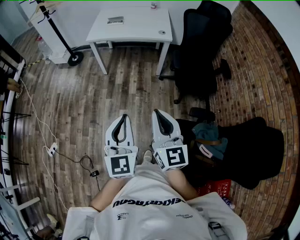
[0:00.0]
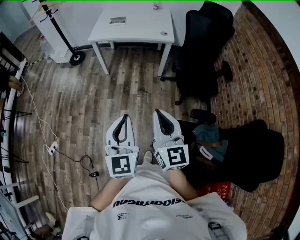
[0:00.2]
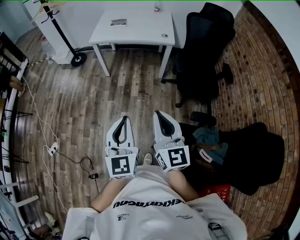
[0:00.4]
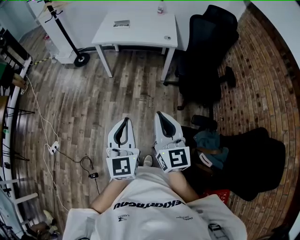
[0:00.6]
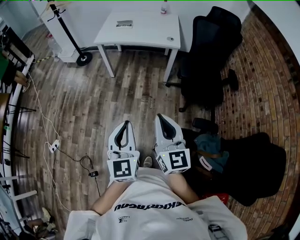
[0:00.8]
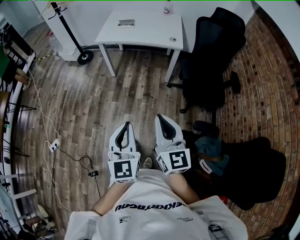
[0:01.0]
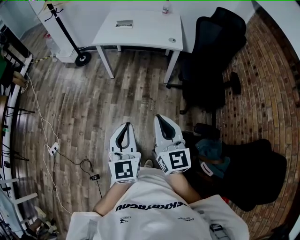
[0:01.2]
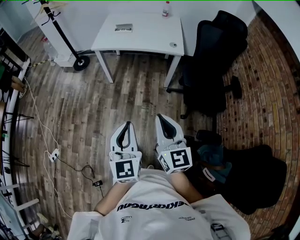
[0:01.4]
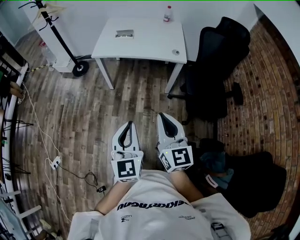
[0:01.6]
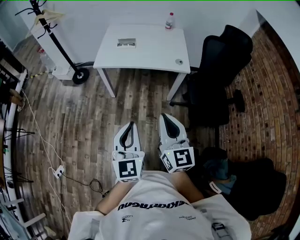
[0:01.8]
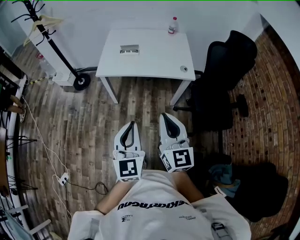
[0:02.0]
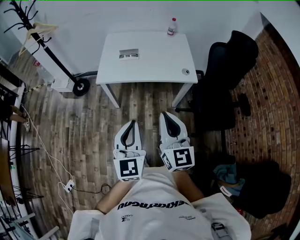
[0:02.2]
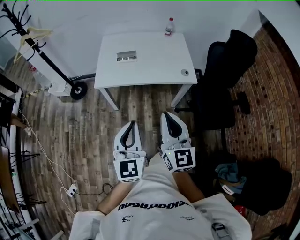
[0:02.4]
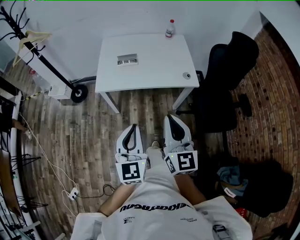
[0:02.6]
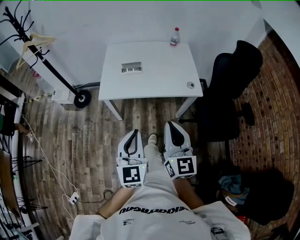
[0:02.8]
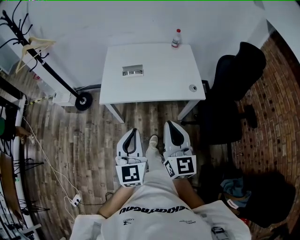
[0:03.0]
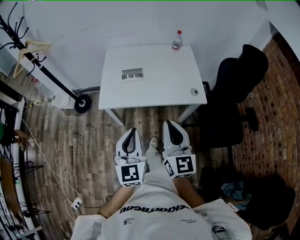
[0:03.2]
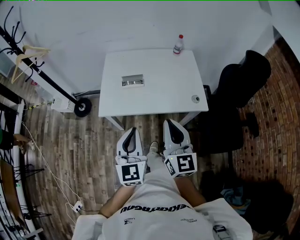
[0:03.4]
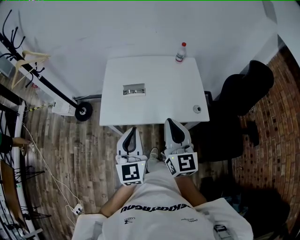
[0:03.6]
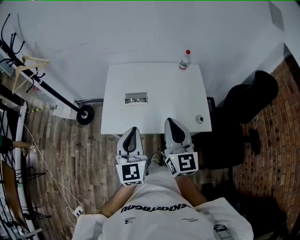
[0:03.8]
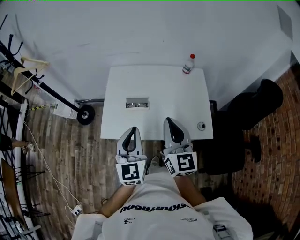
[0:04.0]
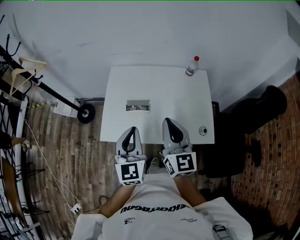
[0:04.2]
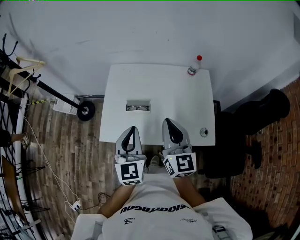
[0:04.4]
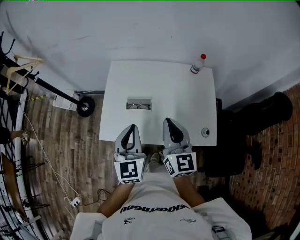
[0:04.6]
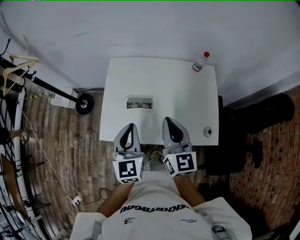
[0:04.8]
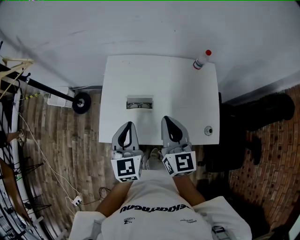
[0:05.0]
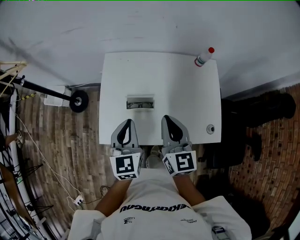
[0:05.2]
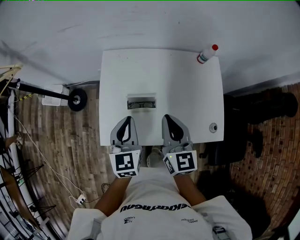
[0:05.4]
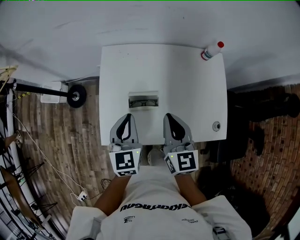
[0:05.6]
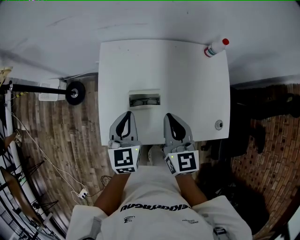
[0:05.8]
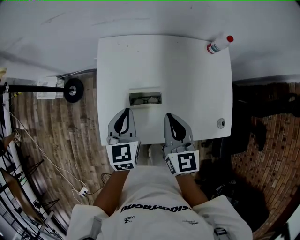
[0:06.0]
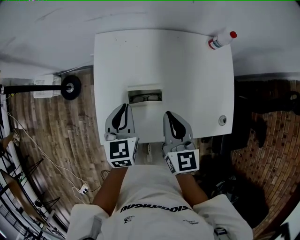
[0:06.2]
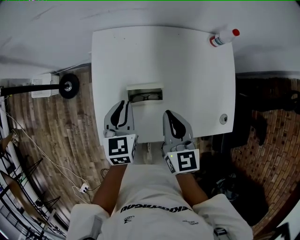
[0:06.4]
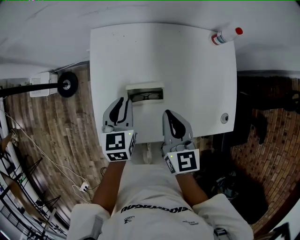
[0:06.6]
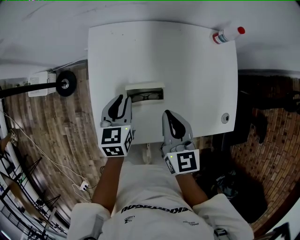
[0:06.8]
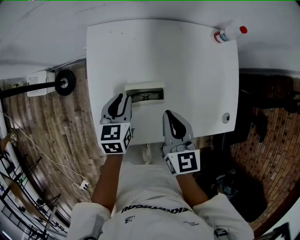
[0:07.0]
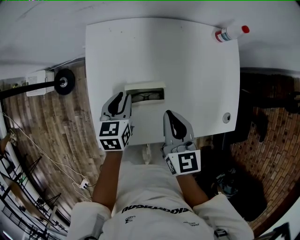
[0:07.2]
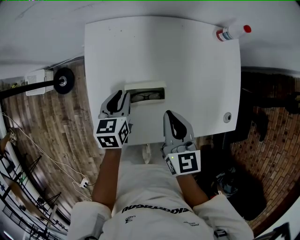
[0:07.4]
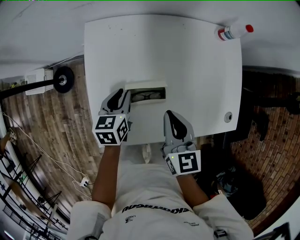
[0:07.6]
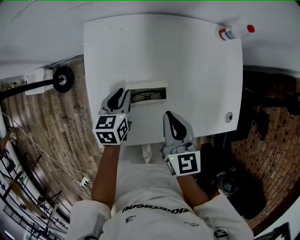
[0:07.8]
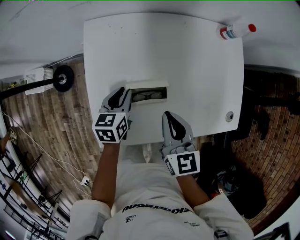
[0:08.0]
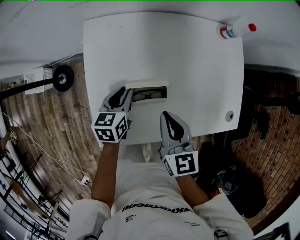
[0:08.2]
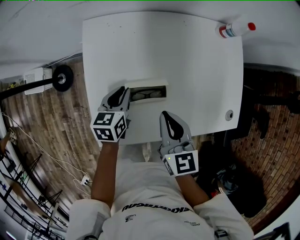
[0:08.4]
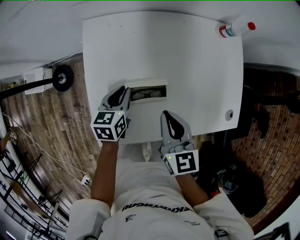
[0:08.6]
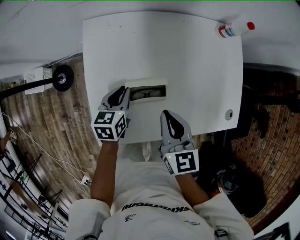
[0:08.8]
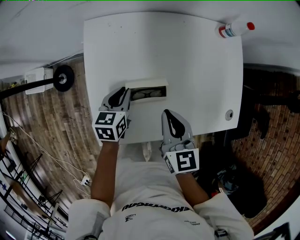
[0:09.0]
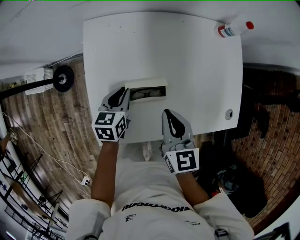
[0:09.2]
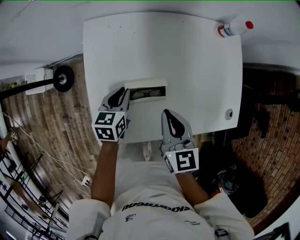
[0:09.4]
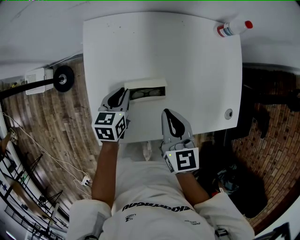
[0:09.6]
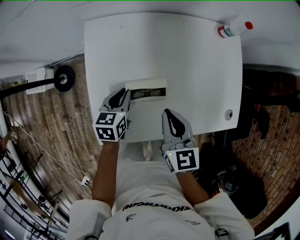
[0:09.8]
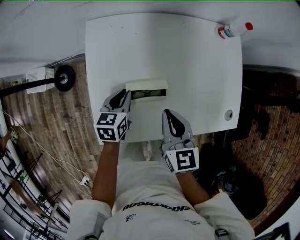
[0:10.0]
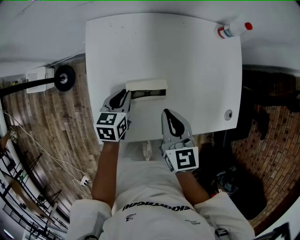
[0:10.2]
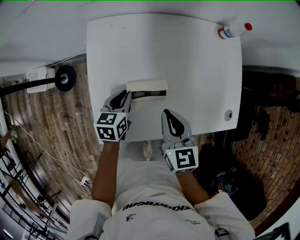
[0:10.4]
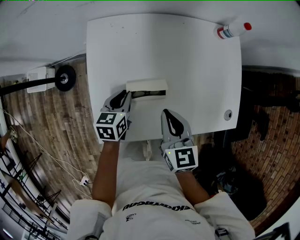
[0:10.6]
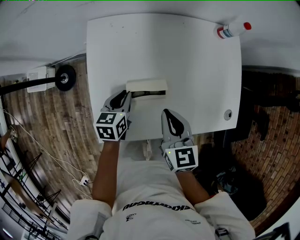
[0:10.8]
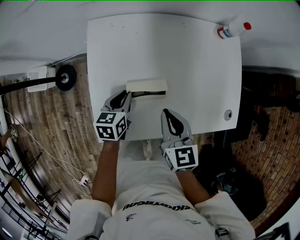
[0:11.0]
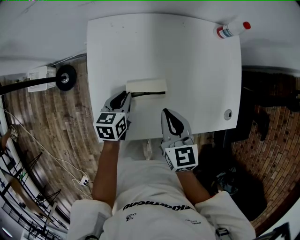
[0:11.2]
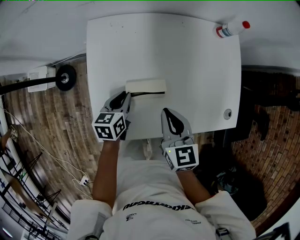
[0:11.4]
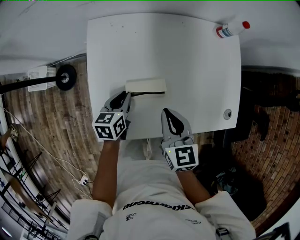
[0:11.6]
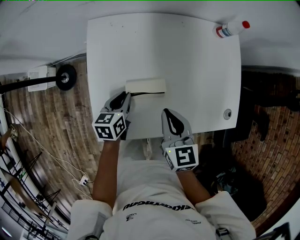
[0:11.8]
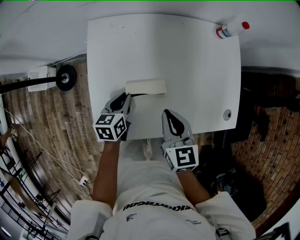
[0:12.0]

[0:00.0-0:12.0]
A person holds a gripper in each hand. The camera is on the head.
0:00.0 to 0:01.6: The two grippers go about 25 cm forward.
0:01.6 to 0:03.0: Both grippers move forward, approximately 35 cm.
0:03.0 to 0:04.4: The grippers both shift forward by approximately 40 cm.
0:04.4 to 0:06.0: The left gripper shifts approximately 25 cm forward, downward and to the left, and turns by some 20 degrees; the right gripper moves downward, forward and to the left, approximately 20 cm.
0:06.0 to 0:07.6: The right gripper moves downward, some 10 cm. The left gripper travels downward and forward by about 15 cm, rotates approximately 20 degrees, and opens.
0:07.6 to 0:12.0: The grippers make only small movements.

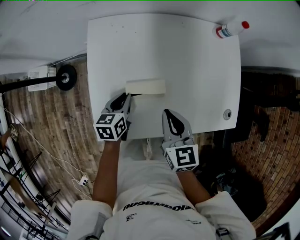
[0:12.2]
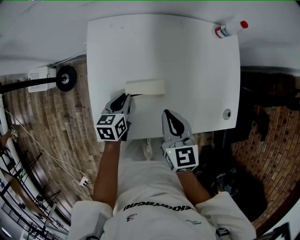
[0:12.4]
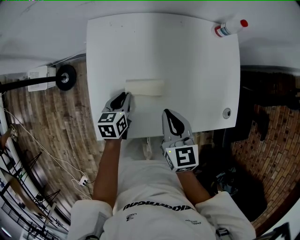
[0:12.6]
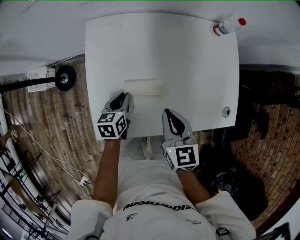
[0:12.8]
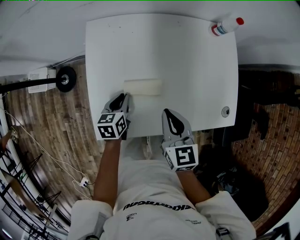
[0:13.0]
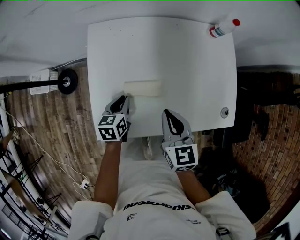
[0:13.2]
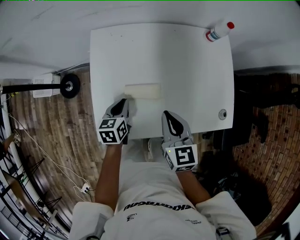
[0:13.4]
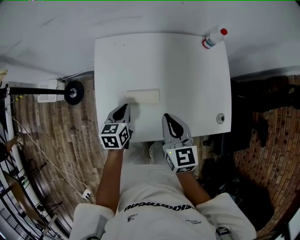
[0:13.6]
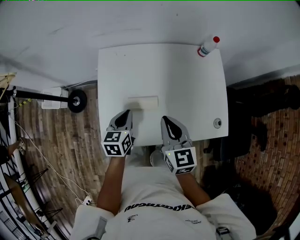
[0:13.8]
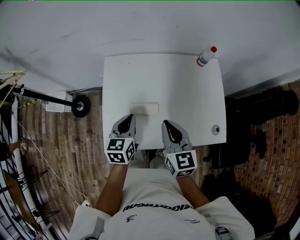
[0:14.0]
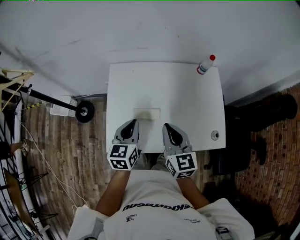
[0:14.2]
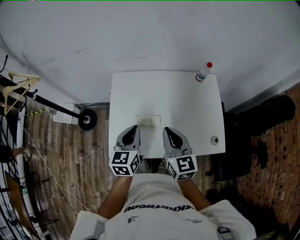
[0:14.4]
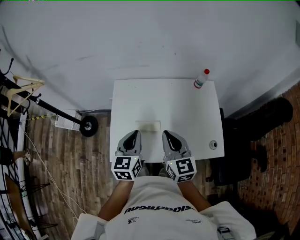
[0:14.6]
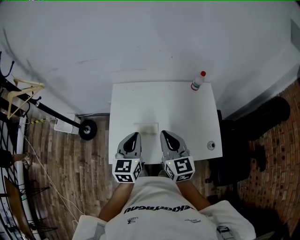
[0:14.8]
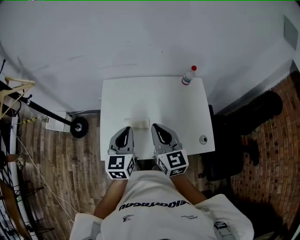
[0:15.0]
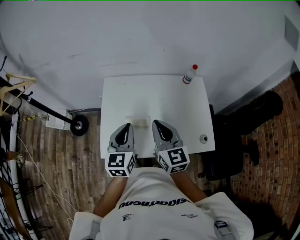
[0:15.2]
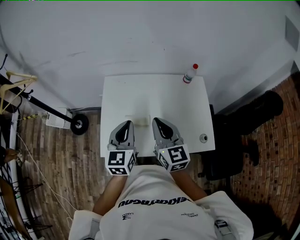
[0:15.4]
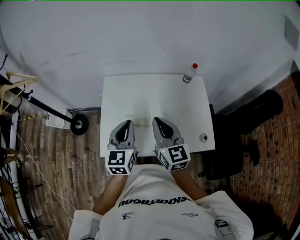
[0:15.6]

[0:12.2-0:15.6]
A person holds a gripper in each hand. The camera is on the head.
0:12.2 to 0:13.8: The two grippers go approximately 10 cm upward.
0:13.8 to 0:15.6: The right gripper goes approximately 15 cm upward; the left gripper moves upward, roughly 20 cm, and changes its angle by about 30 degrees.

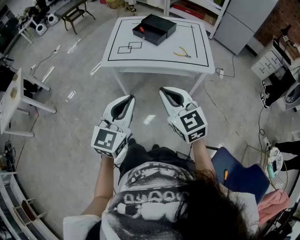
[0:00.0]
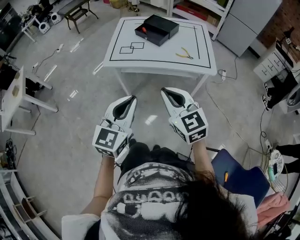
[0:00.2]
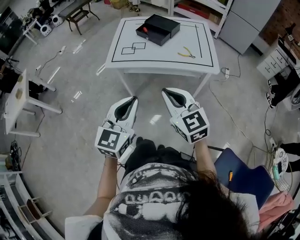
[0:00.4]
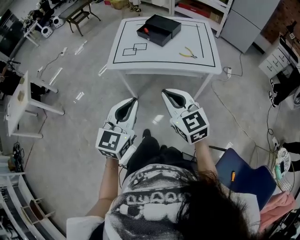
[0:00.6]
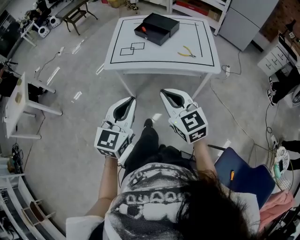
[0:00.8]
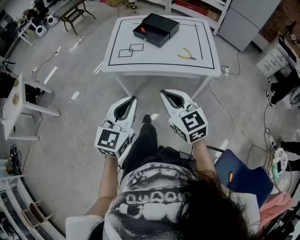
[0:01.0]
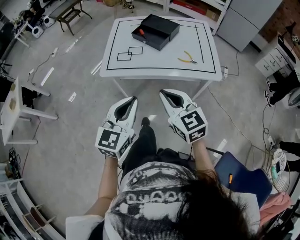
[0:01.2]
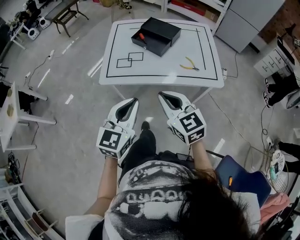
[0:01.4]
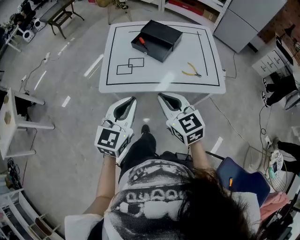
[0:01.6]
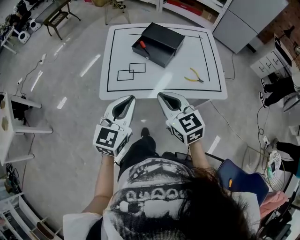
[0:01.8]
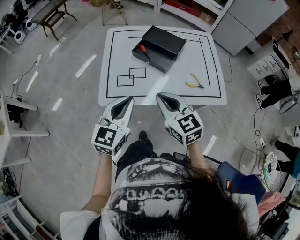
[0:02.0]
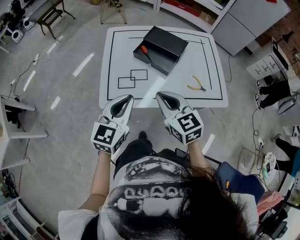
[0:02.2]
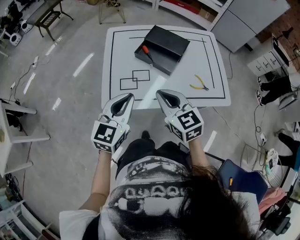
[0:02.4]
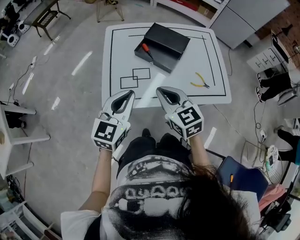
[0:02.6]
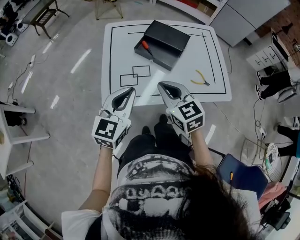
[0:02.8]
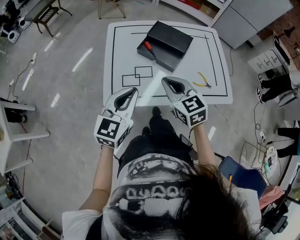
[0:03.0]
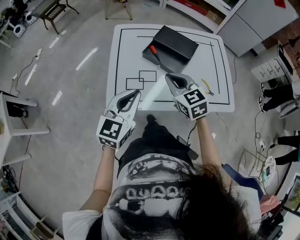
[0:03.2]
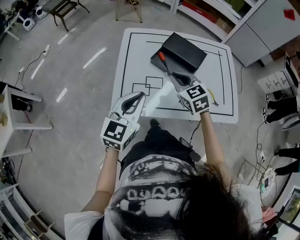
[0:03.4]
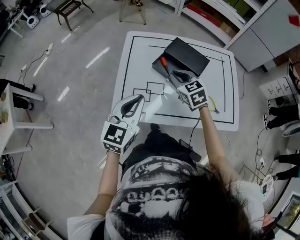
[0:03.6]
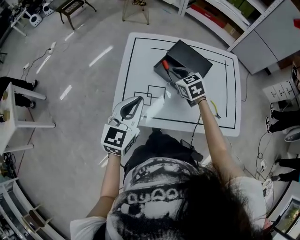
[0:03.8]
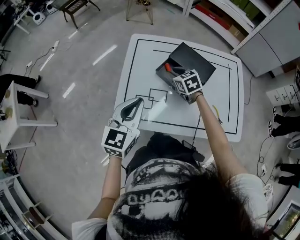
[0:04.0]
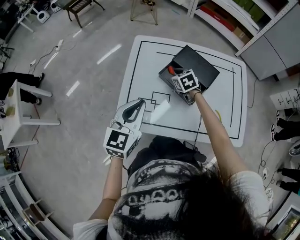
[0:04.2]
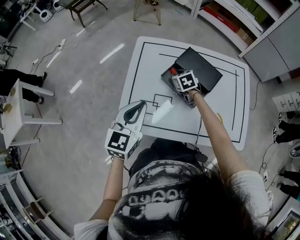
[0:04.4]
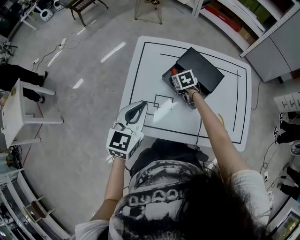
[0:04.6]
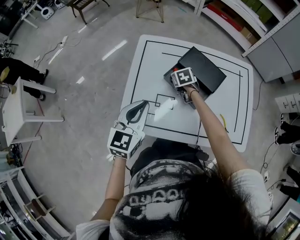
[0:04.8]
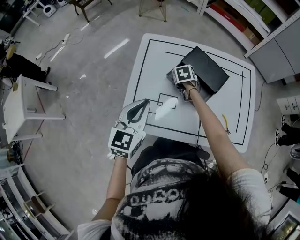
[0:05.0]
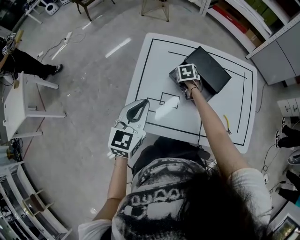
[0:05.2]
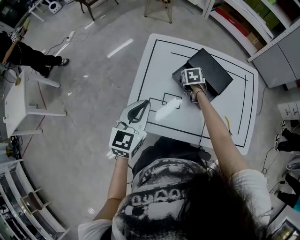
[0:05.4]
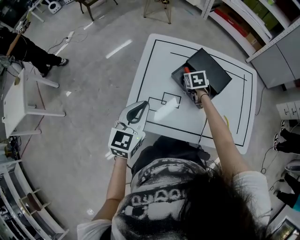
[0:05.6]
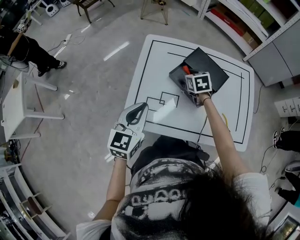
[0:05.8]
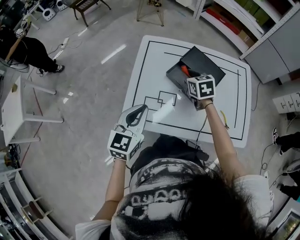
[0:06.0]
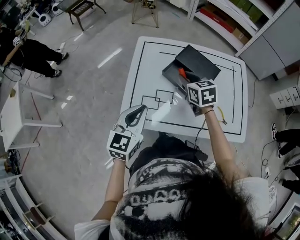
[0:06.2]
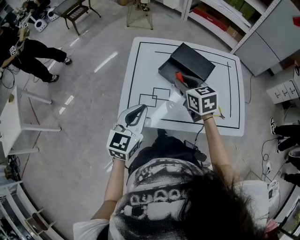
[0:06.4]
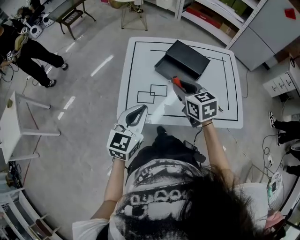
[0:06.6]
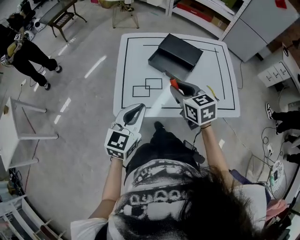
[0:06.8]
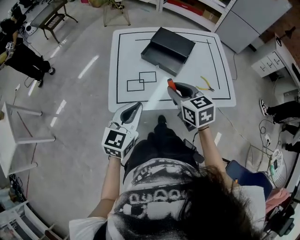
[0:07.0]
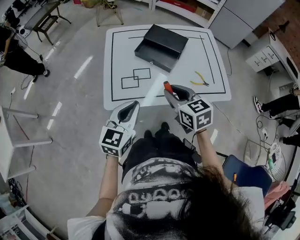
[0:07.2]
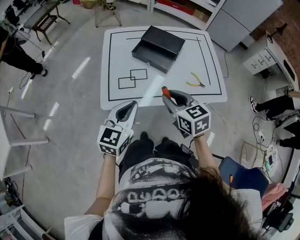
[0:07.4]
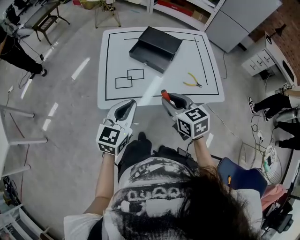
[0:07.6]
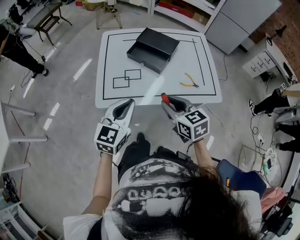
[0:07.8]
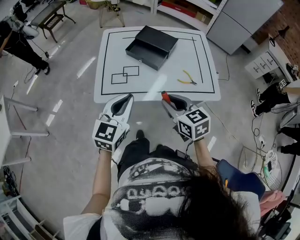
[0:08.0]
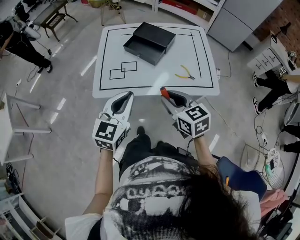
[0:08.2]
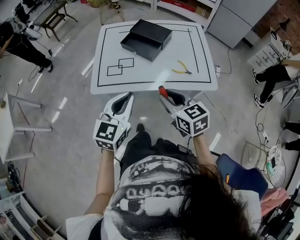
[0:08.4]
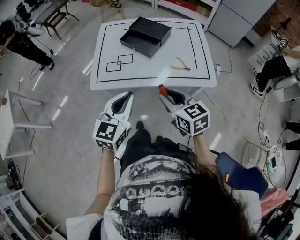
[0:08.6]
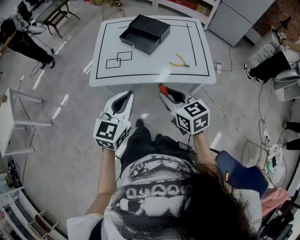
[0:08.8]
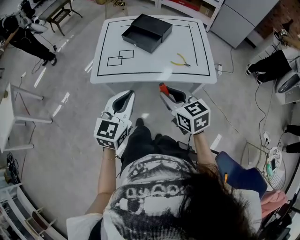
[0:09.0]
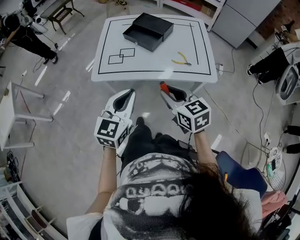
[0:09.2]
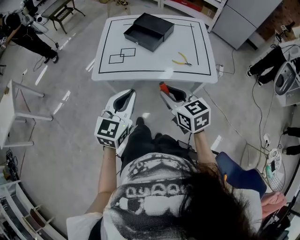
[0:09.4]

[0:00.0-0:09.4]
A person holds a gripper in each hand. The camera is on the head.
0:00.0 to 0:01.6: Both grippers travel together forward, about 25 cm.
0:01.6 to 0:03.2: The left gripper travels forward and to the left by roughly 20 cm; the right gripper is displaced forward by approximately 25 cm.
0:03.2 to 0:04.8: The left gripper shifts some 10 cm forward; the right gripper is displaced forward and downward by approximately 35 cm, tips its fingers downward by about 30 degrees, and opens its fingers.
0:04.8 to 0:06.2: The left gripper is displaced backward by approximately 5 cm. Meanwhile the right gripper moves upward and backward, roughly 20 cm, and changes its angle by some 20 degrees.
0:06.2 to 0:07.8: The right gripper heads backward, covering roughly 30 cm. The left gripper travels backward and to the right by about 15 cm.
0:07.8 to 0:09.4: Both grippers move backward and to the right, some 15 cm.
